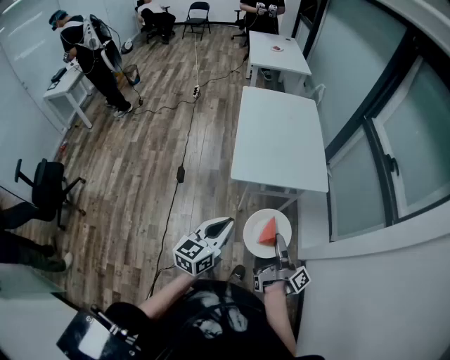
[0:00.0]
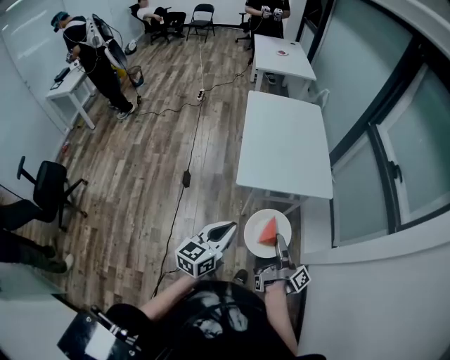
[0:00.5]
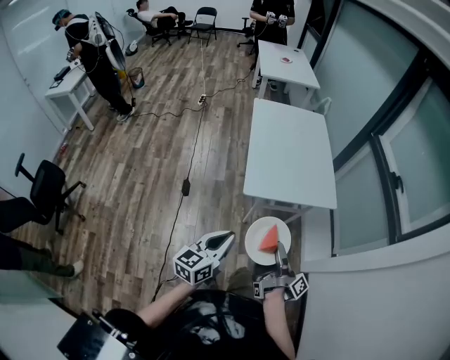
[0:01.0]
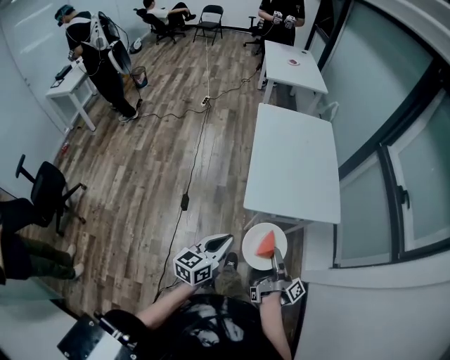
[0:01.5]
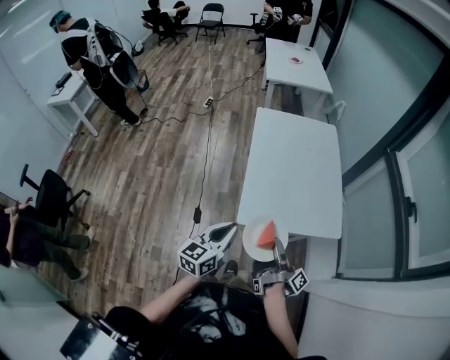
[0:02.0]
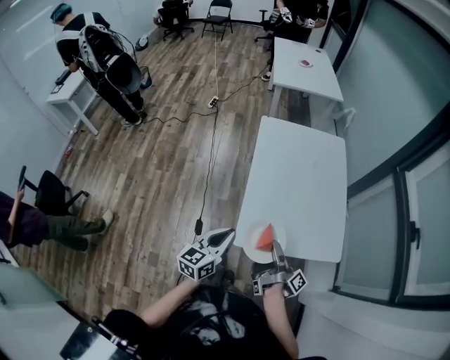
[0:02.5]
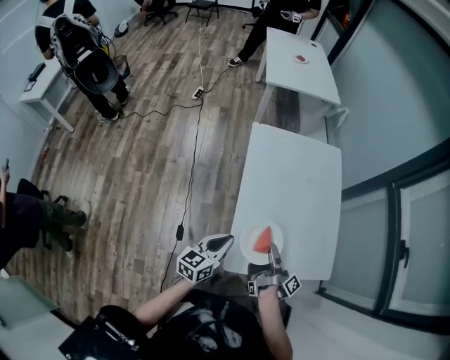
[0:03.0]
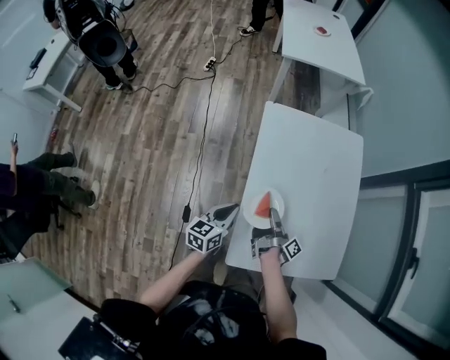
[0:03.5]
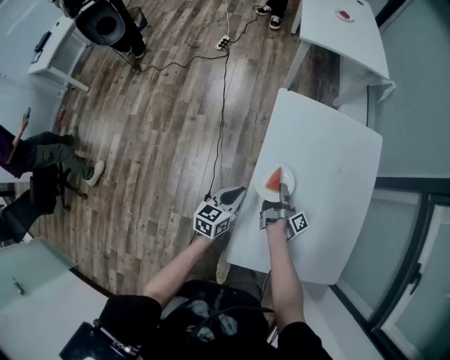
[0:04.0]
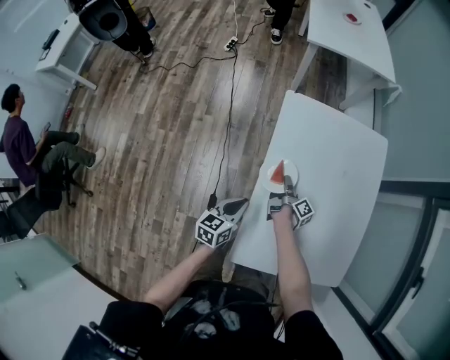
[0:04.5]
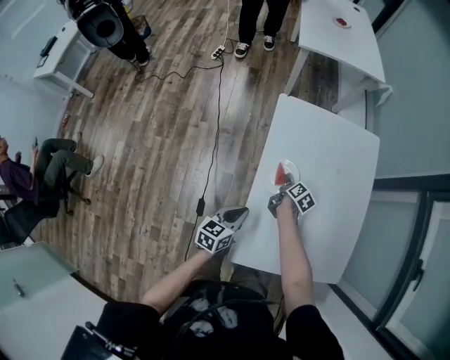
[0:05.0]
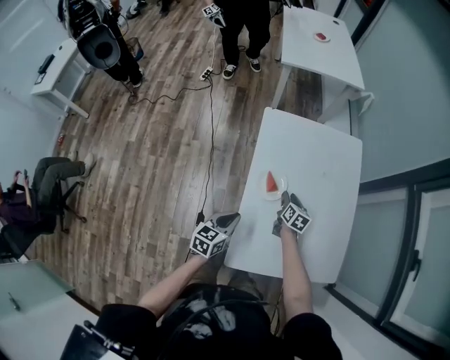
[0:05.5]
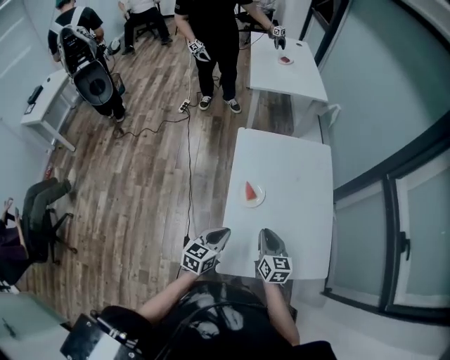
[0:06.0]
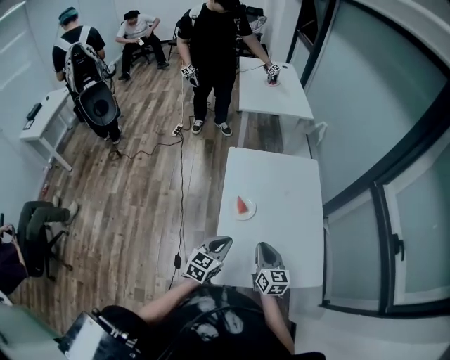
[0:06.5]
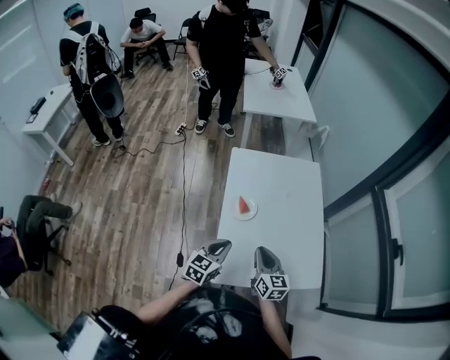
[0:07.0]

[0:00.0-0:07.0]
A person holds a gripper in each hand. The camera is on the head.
0:00.0 to 0:02.0: The left gripper changes place by about 25 cm.
0:02.0 to 0:03.5: The left gripper ends up approximately 40 cm from where it was.
0:05.0 to 0:07.0: The left gripper is displaced upward by about 10 cm, and swivels approximately 20 degrees.

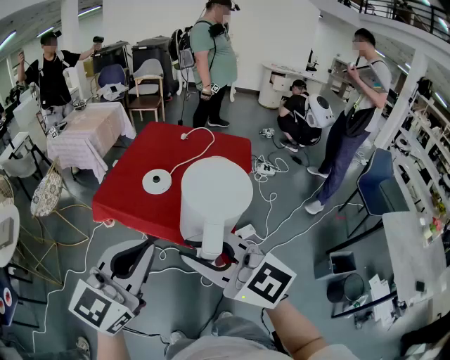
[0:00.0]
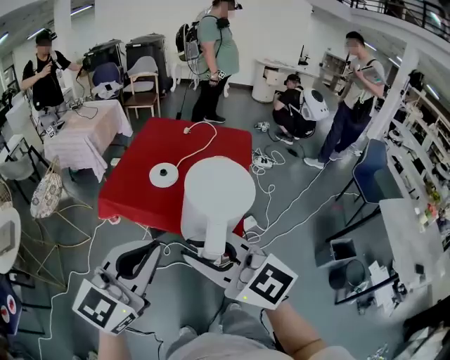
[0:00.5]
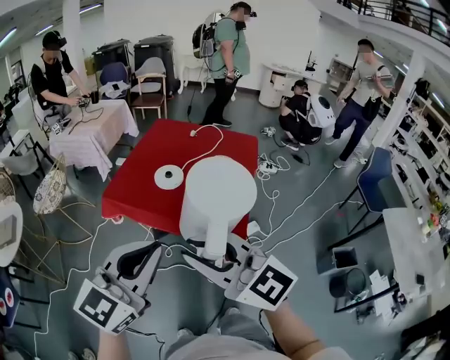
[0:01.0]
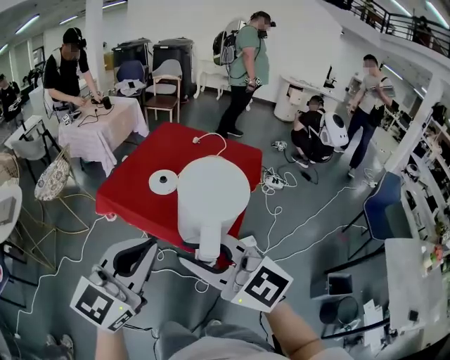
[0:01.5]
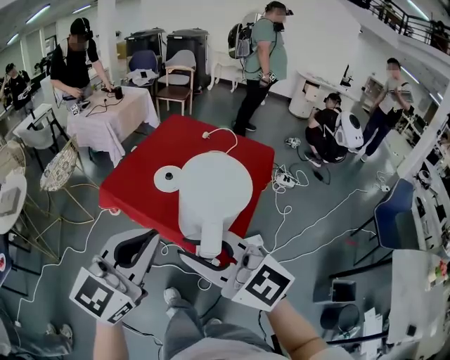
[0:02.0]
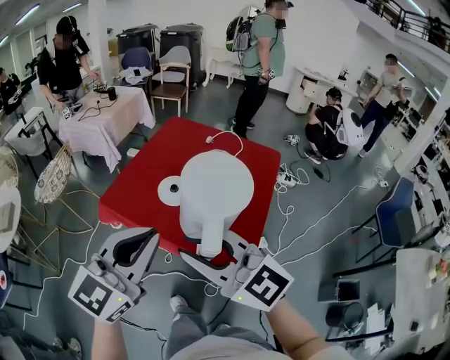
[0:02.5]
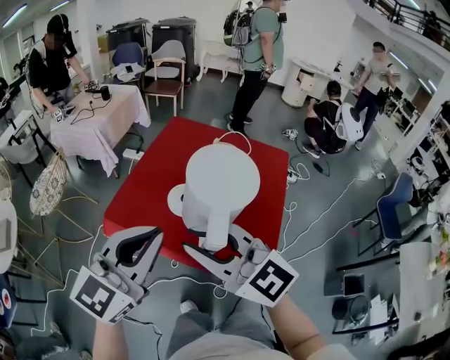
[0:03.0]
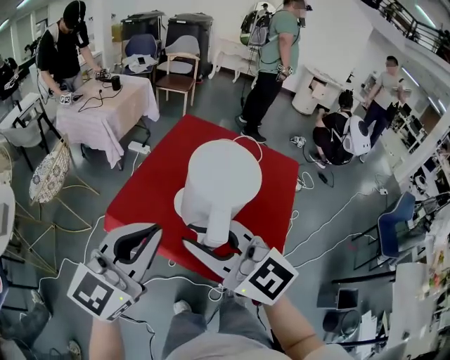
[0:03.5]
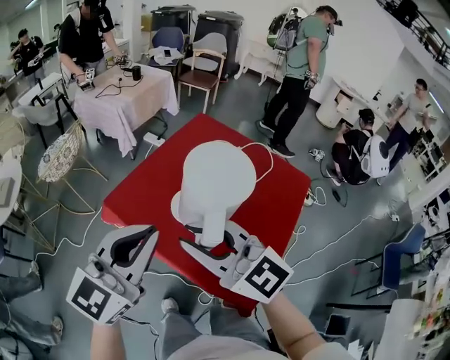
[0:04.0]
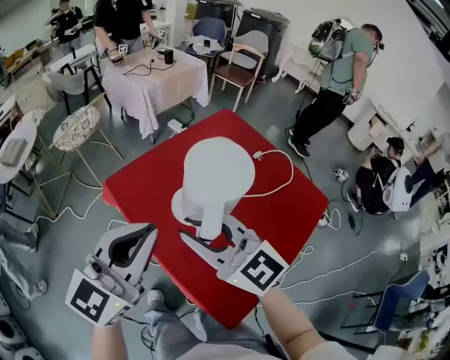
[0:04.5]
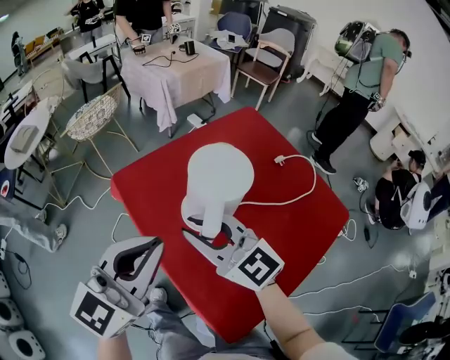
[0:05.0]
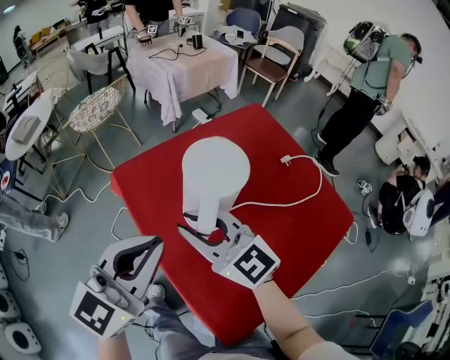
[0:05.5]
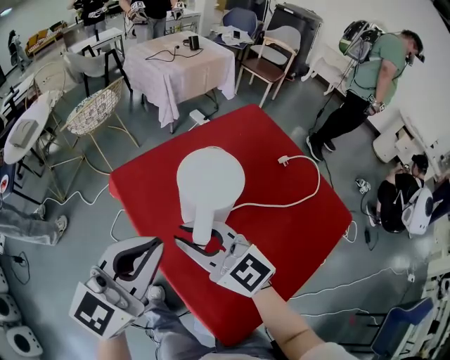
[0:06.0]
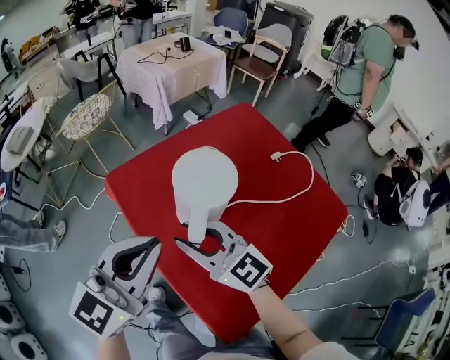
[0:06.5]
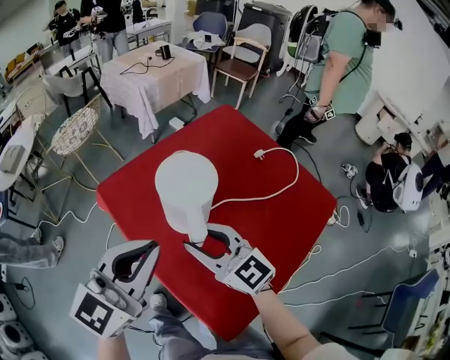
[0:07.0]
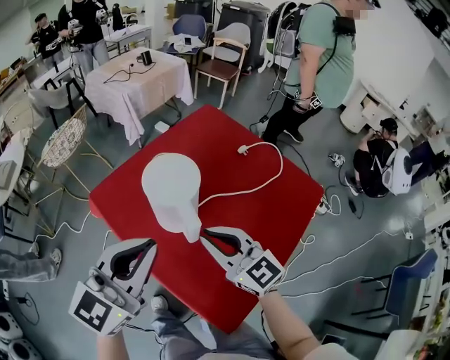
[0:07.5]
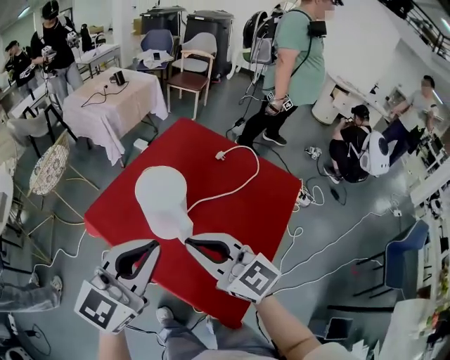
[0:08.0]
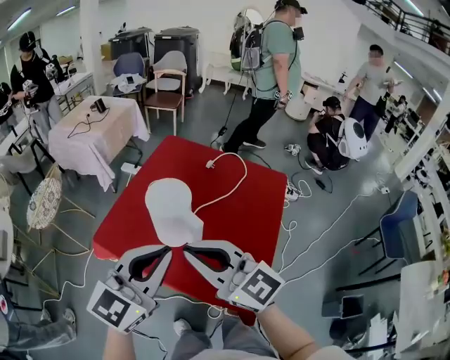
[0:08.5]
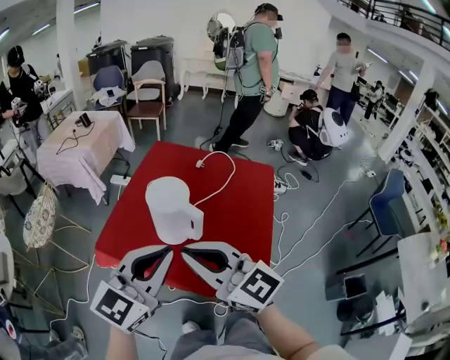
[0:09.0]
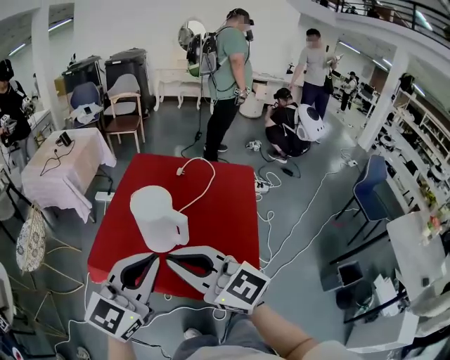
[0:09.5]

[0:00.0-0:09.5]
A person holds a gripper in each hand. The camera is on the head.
0:00.0 to 0:02.0: The right gripper moves roughly 5 cm to the left and comes back; the left gripper goes to the left and returns, approximately 5 cm each way.
0:02.0 to 0:04.0: The two grippers go some 25 cm forward.
0:04.0 to 0:05.5: The left gripper moves downward, some 10 cm, and turns by roughly 20 degrees. Meanwhile the right gripper is displaced downward and forward by approximately 15 cm.
0:05.5 to 0:07.5: The right gripper shifts roughly 10 cm to the right, and turns by approximately 20 degrees.
0:07.5 to 0:09.5: The left gripper moves backward and upward, approximately 10 cm, and rotates some 30 degrees. Meanwhile the right gripper goes approximately 20 cm upward, backward and to the left, and rotates about 20 degrees.

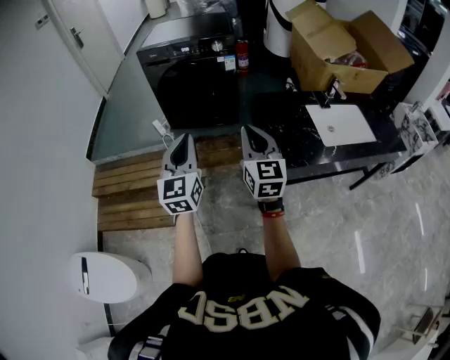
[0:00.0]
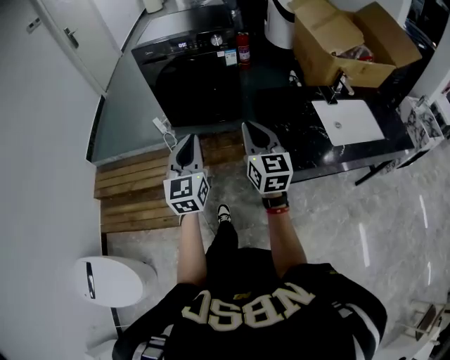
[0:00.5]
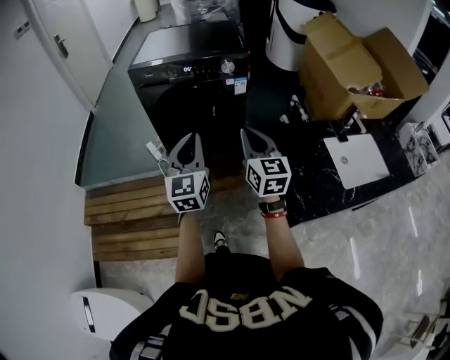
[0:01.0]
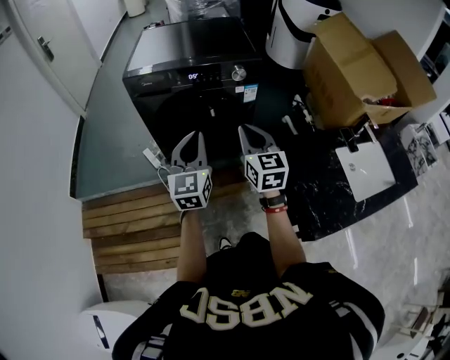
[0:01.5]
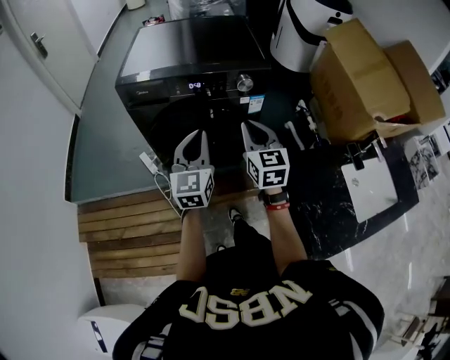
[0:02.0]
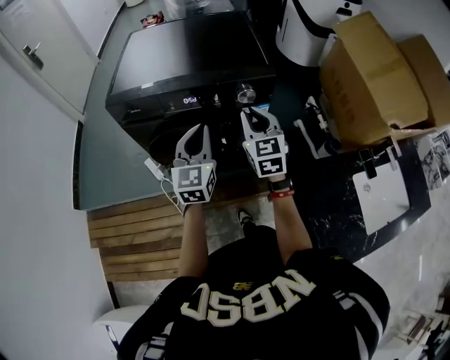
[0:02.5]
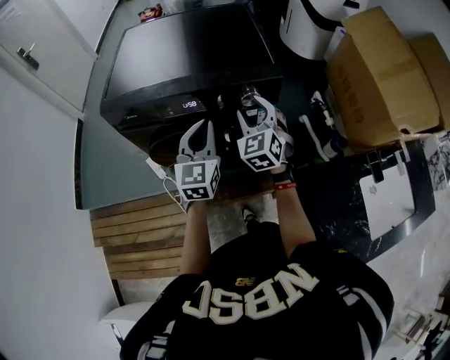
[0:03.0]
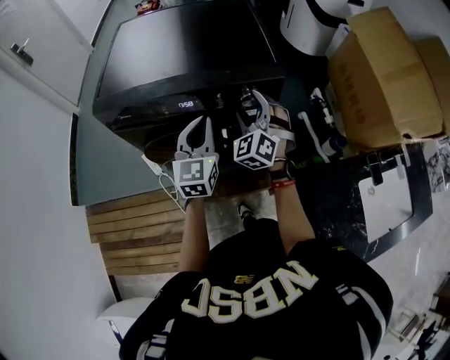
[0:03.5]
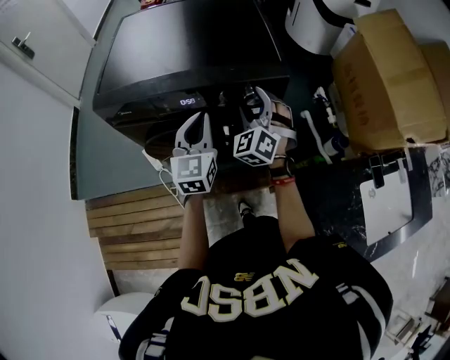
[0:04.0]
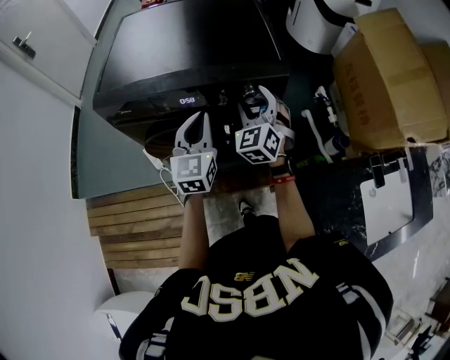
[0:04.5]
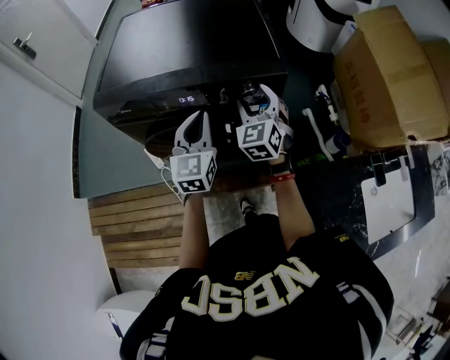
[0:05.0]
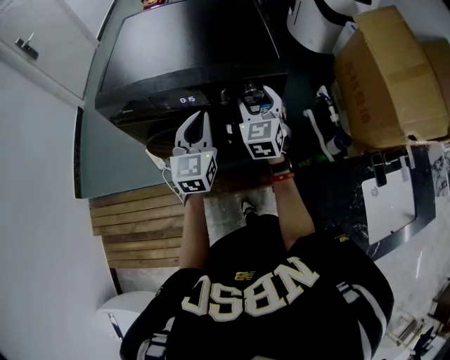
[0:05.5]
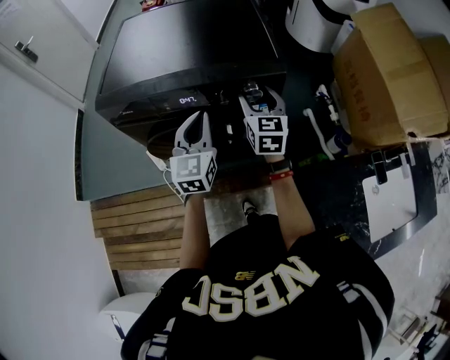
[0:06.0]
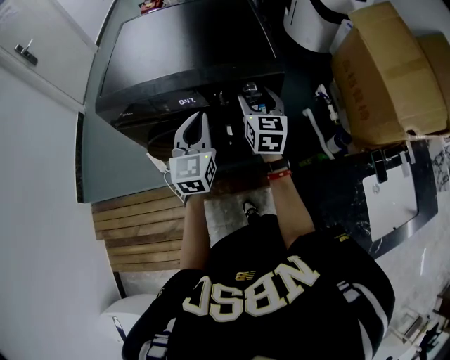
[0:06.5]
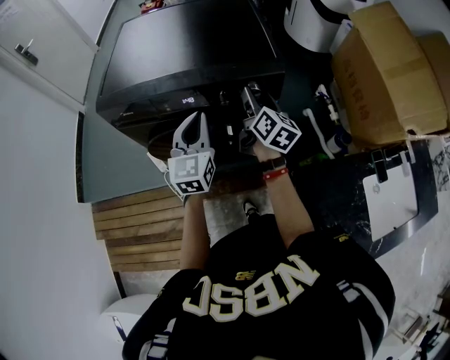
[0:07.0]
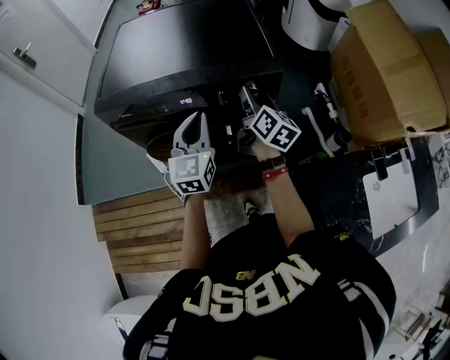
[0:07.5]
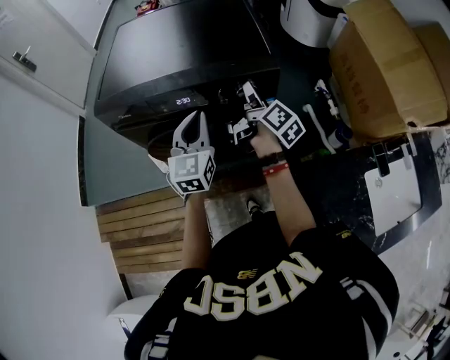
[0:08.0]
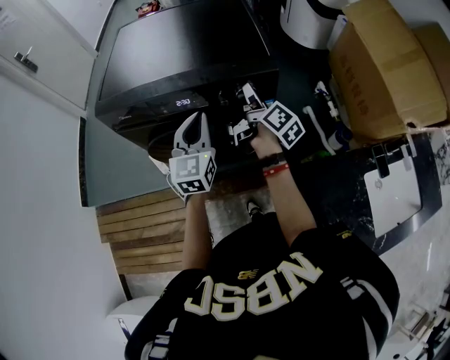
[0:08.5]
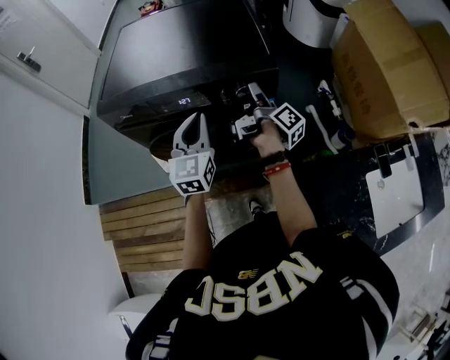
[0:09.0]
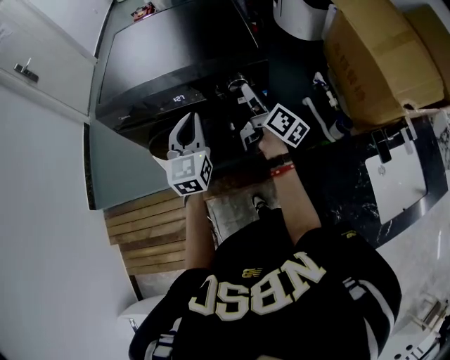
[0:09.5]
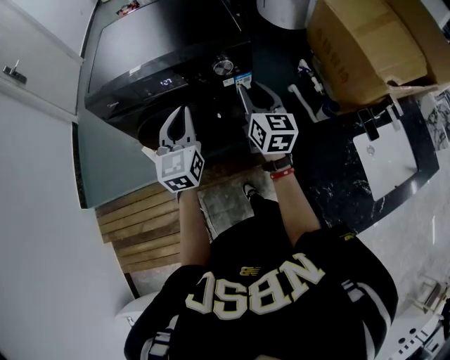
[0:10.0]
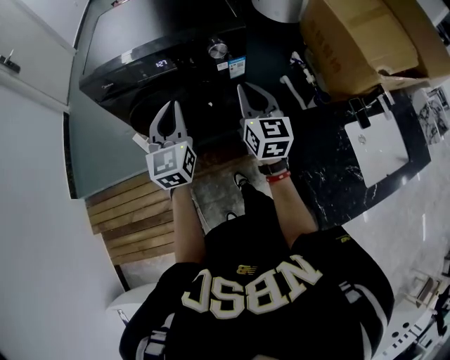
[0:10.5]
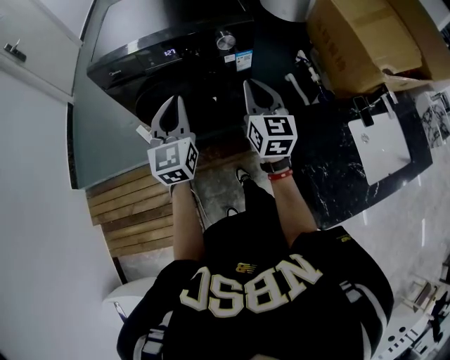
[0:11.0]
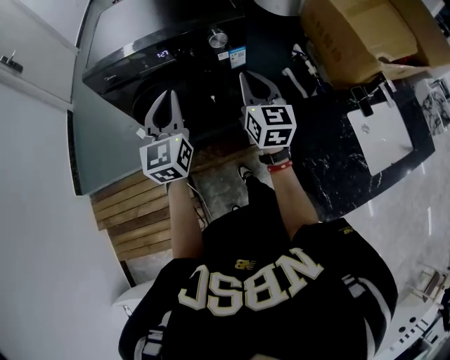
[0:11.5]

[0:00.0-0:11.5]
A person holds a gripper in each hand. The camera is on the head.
0:00.0 to 0:02.0: The pair of grippers is taken forward, approximately 50 cm.
0:02.0 to 0:04.0: The grippers both shift forward by roughly 20 cm. The right gripper rolls counterclockwise, seen from behind, by about 50 degrees, and opens.
0:04.0 to 0:06.0: The right gripper twists some 50 degrees clockwise, seen from behind.
0:06.0 to 0:07.5: The right gripper rotates around the line of its fingers by about 40 degrees, clockwise from behind.
0:07.5 to 0:09.5: The right gripper rotates about 20 degrees.
0:09.5 to 0:11.5: Both grippers travel together backward, about 15 cm. The right gripper twists about 50 degrees counterclockwise, seen from behind, and closes up.
